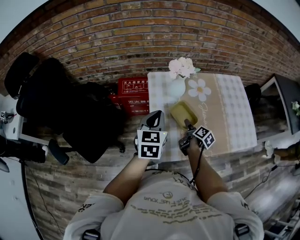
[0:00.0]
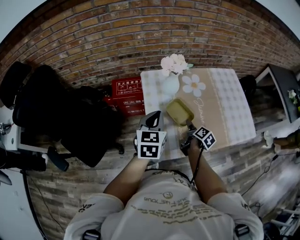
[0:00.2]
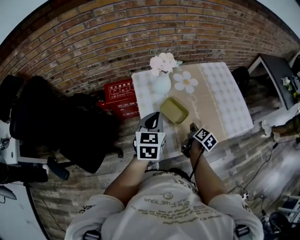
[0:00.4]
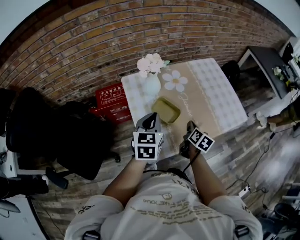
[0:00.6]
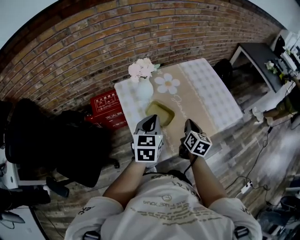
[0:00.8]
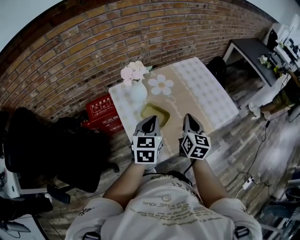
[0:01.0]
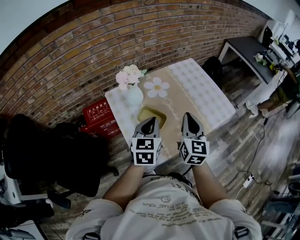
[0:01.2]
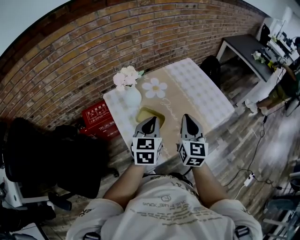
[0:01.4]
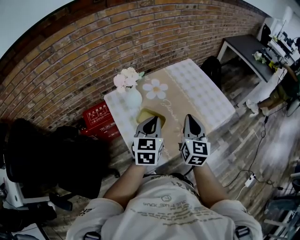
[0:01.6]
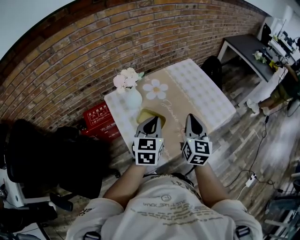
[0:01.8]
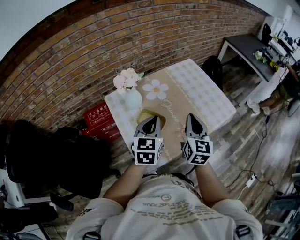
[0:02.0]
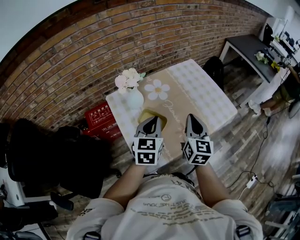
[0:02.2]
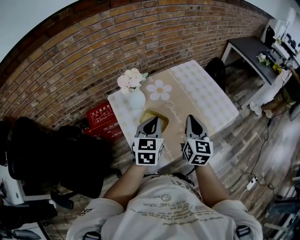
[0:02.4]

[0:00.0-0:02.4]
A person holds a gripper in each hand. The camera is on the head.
0:00.0 to 0:01.2: The left gripper moves some 15 cm, and swivels approximately 20 degrees.

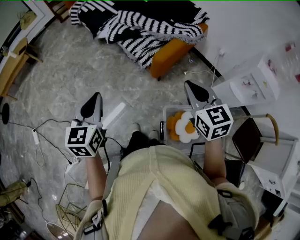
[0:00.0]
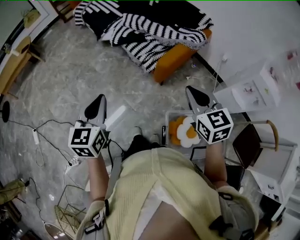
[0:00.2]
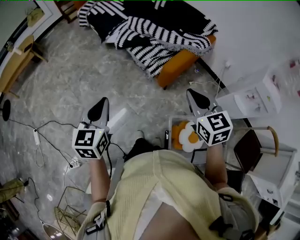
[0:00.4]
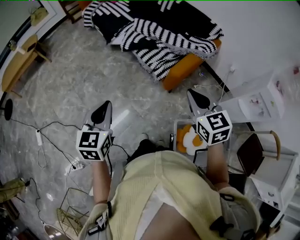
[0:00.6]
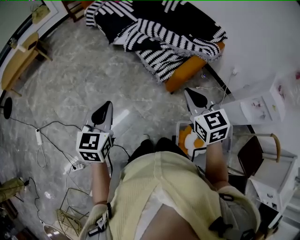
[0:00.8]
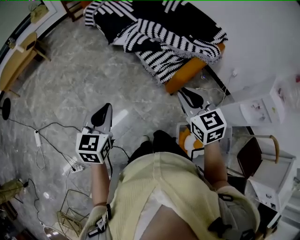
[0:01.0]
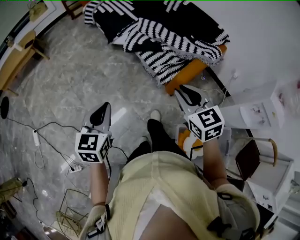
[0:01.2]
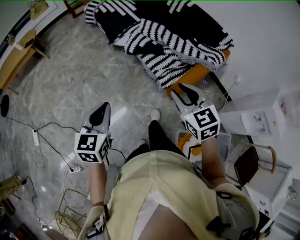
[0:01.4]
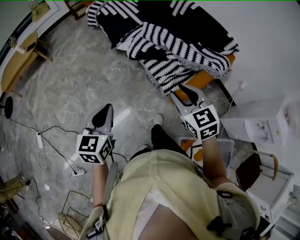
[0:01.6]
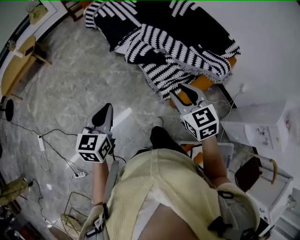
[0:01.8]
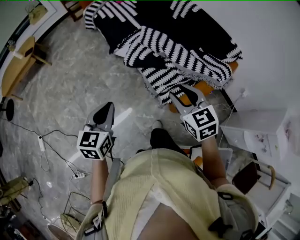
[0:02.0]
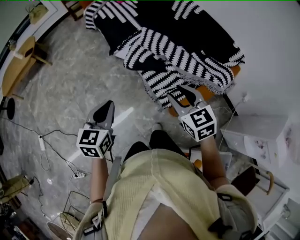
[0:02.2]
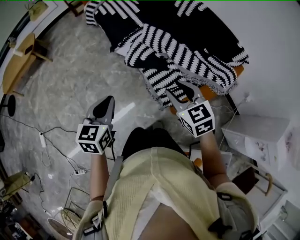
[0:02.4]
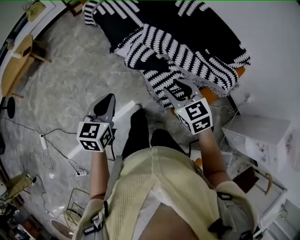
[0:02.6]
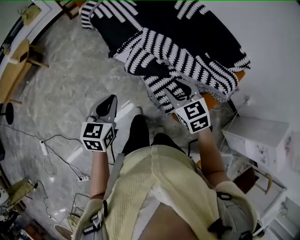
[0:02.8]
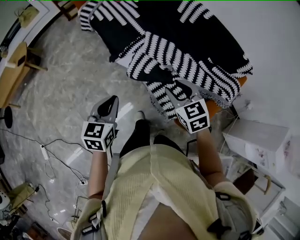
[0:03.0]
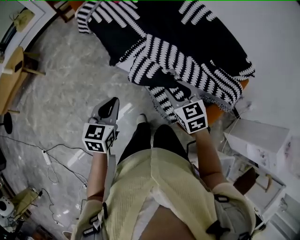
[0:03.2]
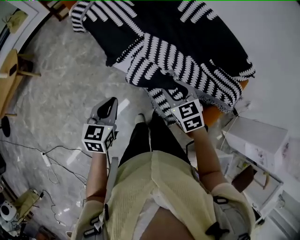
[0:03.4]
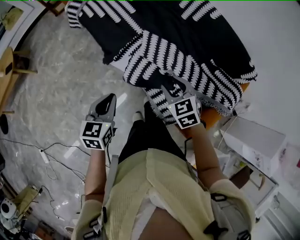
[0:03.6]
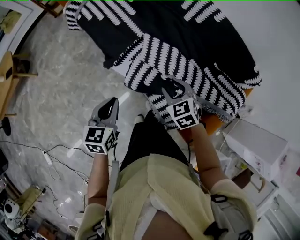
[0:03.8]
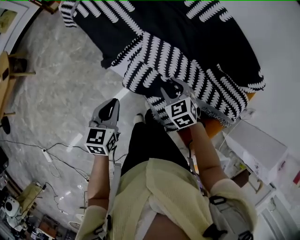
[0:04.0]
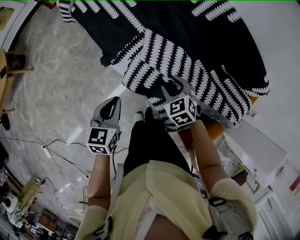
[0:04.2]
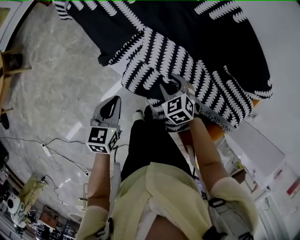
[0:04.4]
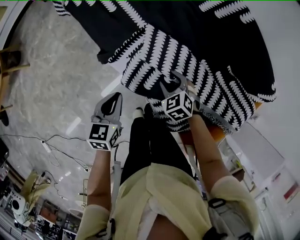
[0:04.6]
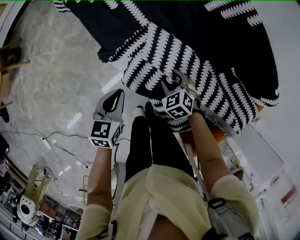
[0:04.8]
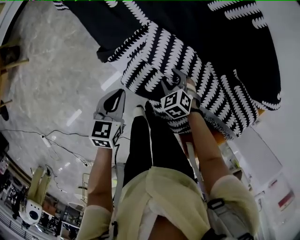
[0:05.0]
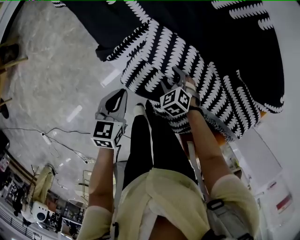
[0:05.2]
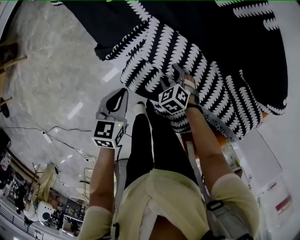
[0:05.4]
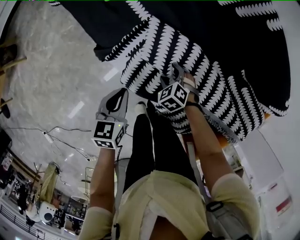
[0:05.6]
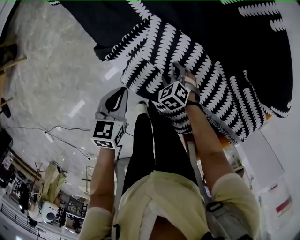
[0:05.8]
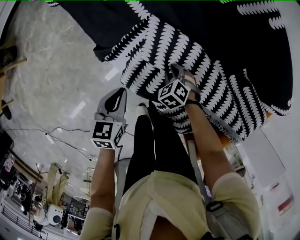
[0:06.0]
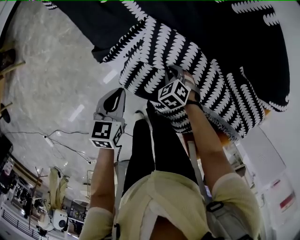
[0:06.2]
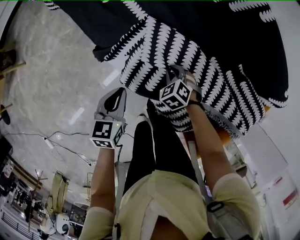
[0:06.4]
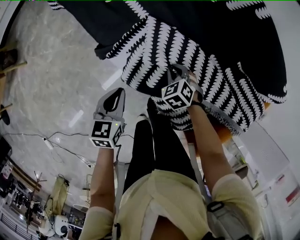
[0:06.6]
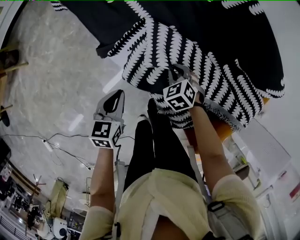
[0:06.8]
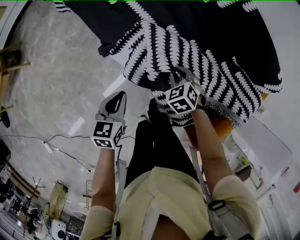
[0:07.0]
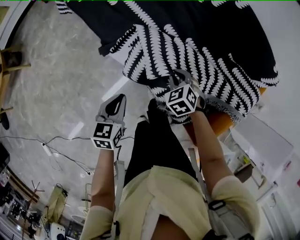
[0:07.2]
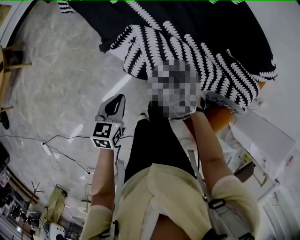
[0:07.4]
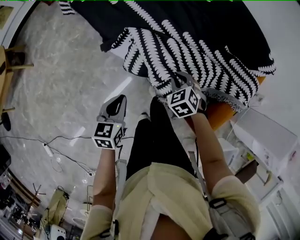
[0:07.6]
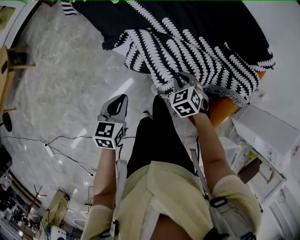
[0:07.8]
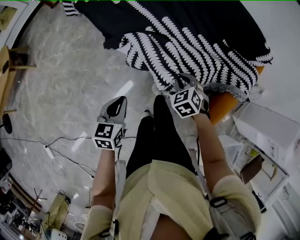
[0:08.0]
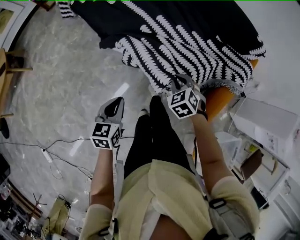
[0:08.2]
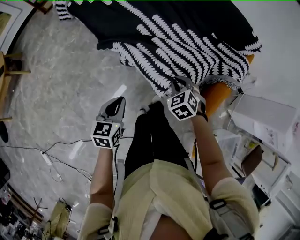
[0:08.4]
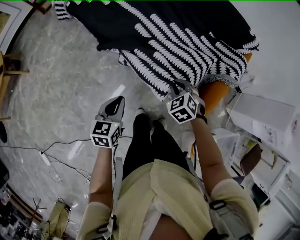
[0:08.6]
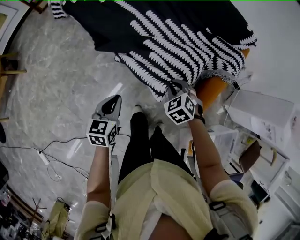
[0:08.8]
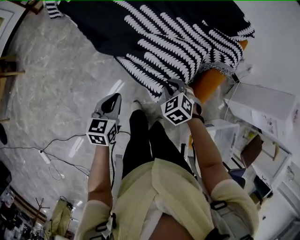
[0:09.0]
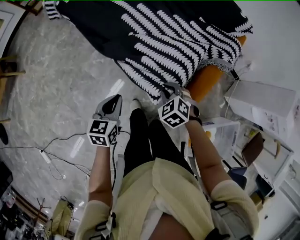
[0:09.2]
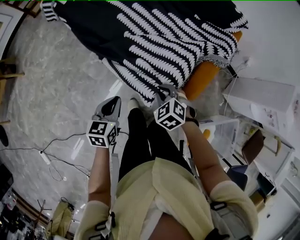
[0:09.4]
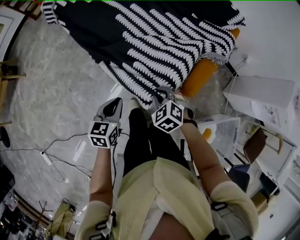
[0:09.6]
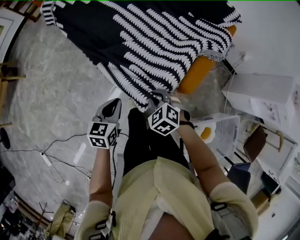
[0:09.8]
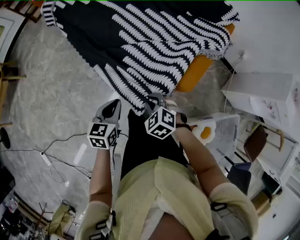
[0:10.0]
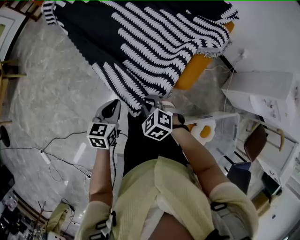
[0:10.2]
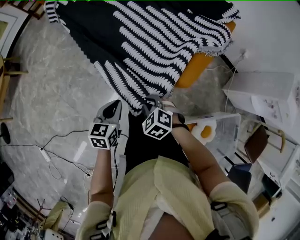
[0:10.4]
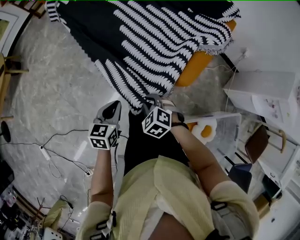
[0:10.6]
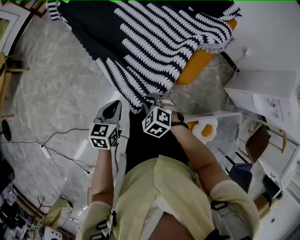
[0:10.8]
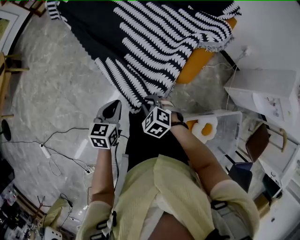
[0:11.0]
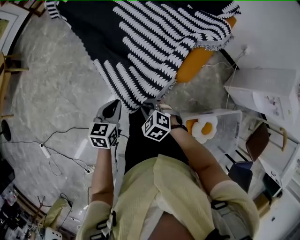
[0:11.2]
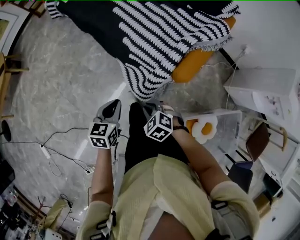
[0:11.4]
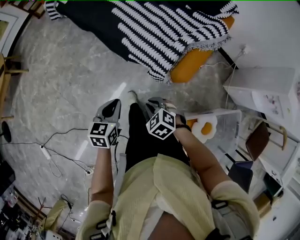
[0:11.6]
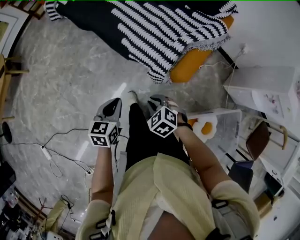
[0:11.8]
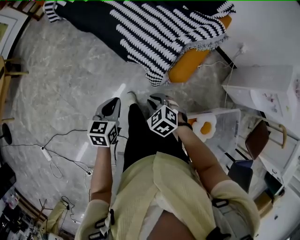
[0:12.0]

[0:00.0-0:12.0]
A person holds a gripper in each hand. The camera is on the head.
0:00.0 to 0:01.6: The grippers both shift forward and to the left by about 25 cm. The right gripper opens.
0:01.6 to 0:03.0: The two grippers go some 30 cm forward.
0:03.0 to 0:04.4: The left gripper travels forward and downward by roughly 25 cm; the right gripper shifts roughly 30 cm downward and forward, and turns by about 20 degrees.
0:04.4 to 0:06.0: The right gripper shifts about 15 cm downward, and opens and closes again, while the left gripper moves downward and forward, roughly 10 cm.
0:06.0 to 0:07.6: The right gripper goes some 20 cm upward and backward, while the left gripper shifts some 15 cm backward.
0:07.6 to 0:09.0: The left gripper shifts approximately 10 cm backward; the right gripper moves backward, some 20 cm.
0:09.0 to 0:10.4: The left gripper travels backward and to the right by some 15 cm. The right gripper is displaced backward by some 15 cm.

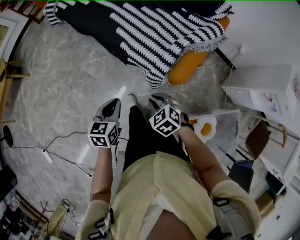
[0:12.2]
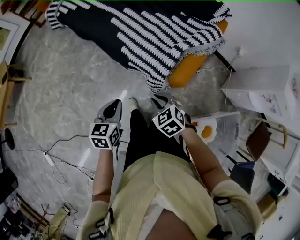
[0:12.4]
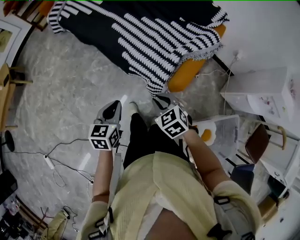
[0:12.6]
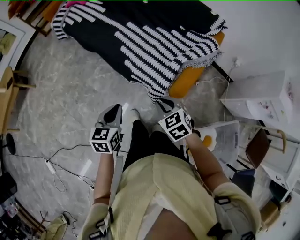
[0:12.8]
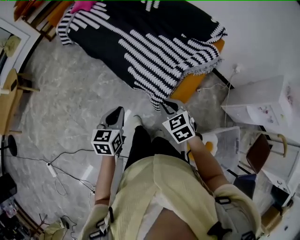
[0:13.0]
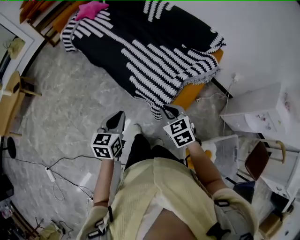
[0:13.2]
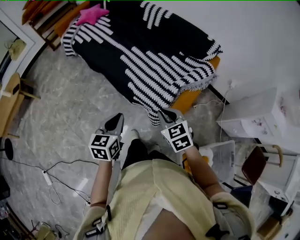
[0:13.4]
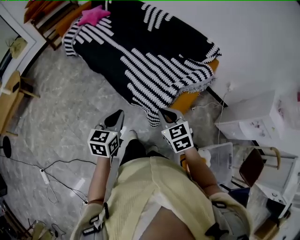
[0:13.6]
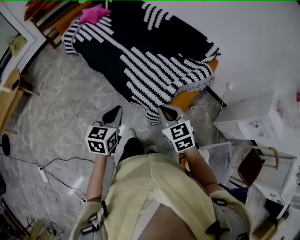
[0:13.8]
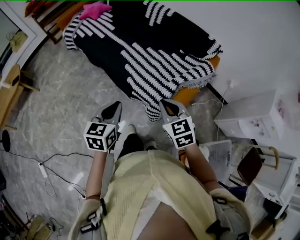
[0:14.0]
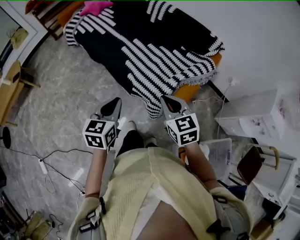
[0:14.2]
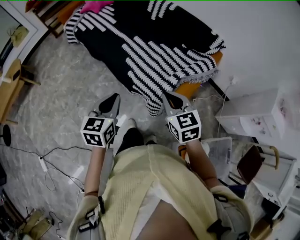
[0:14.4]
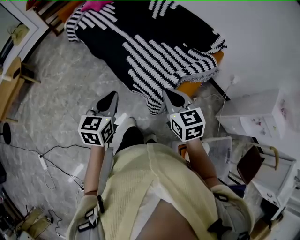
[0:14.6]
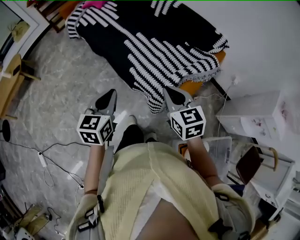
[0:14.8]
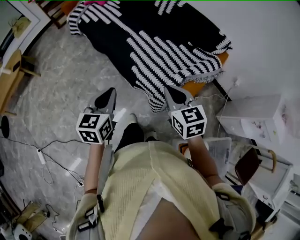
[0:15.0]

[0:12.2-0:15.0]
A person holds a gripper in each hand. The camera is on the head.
0:12.2 to 0:13.6: Both grippers move upward and forward, roughly 15 cm. The right gripper changes its angle by approximately 20 degrees.
0:13.6 to 0:15.0: The right gripper is displaced upward by about 5 cm. The left gripper moves about 5 cm.

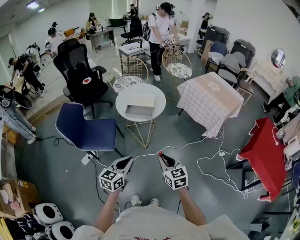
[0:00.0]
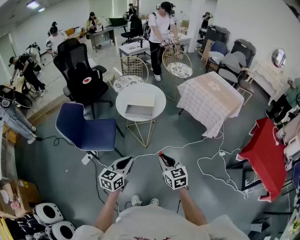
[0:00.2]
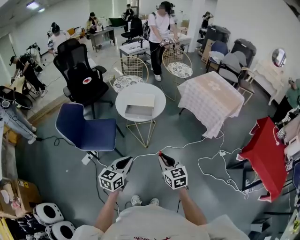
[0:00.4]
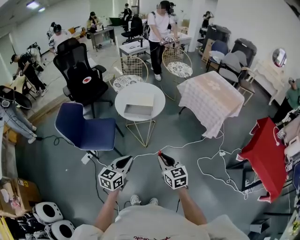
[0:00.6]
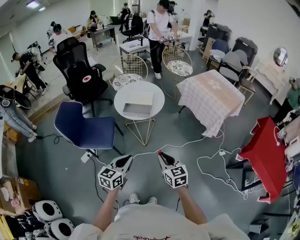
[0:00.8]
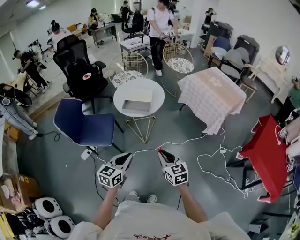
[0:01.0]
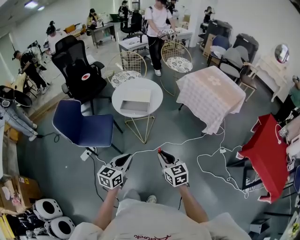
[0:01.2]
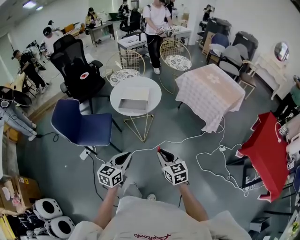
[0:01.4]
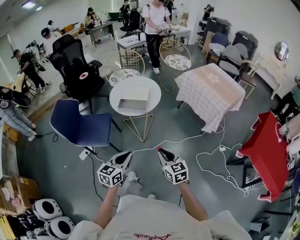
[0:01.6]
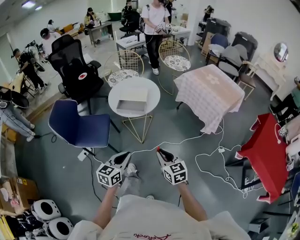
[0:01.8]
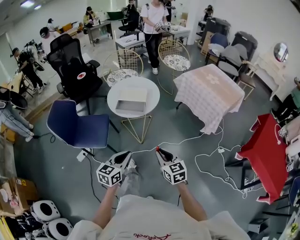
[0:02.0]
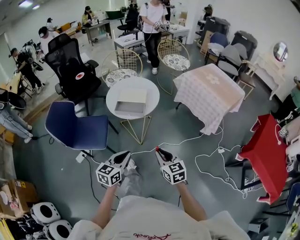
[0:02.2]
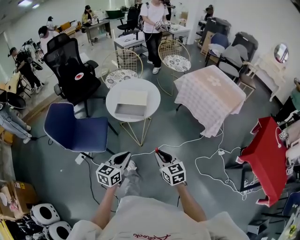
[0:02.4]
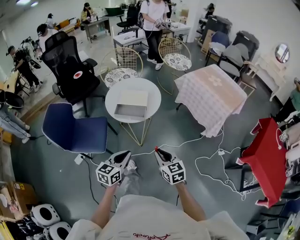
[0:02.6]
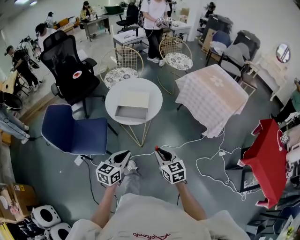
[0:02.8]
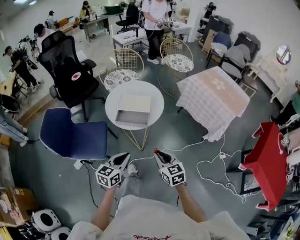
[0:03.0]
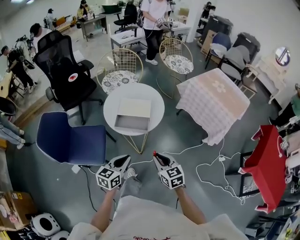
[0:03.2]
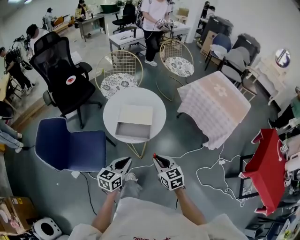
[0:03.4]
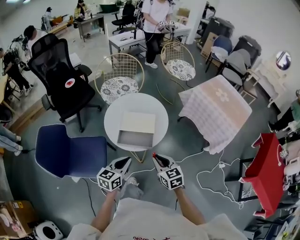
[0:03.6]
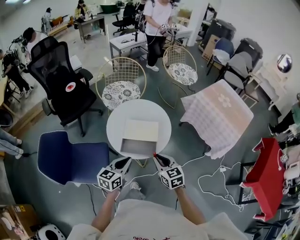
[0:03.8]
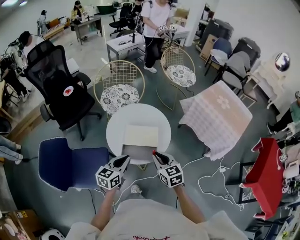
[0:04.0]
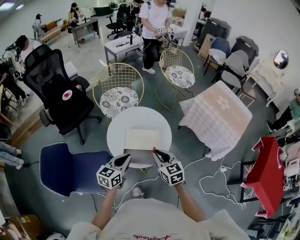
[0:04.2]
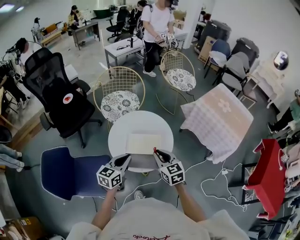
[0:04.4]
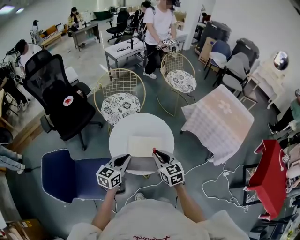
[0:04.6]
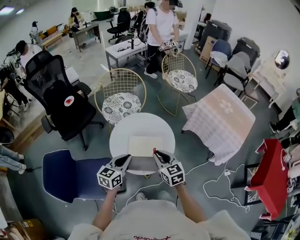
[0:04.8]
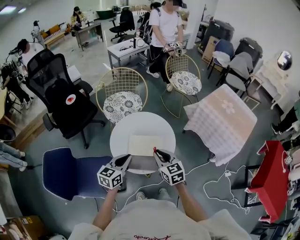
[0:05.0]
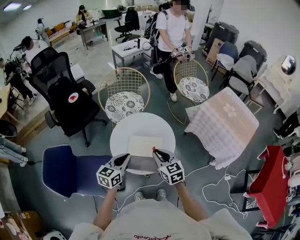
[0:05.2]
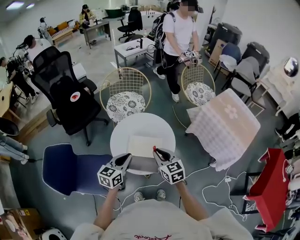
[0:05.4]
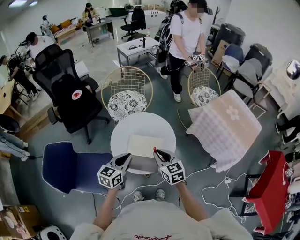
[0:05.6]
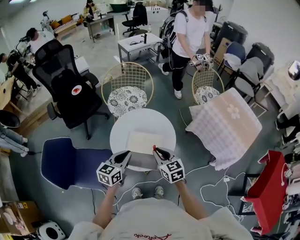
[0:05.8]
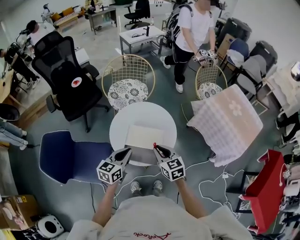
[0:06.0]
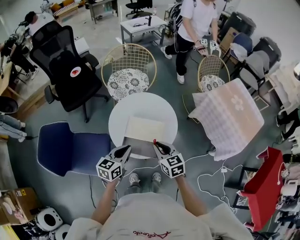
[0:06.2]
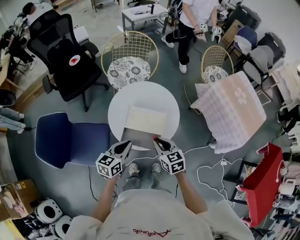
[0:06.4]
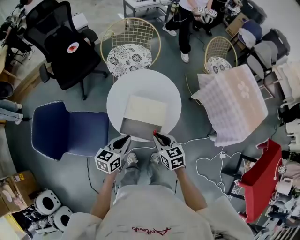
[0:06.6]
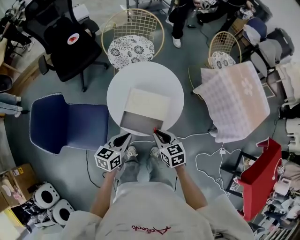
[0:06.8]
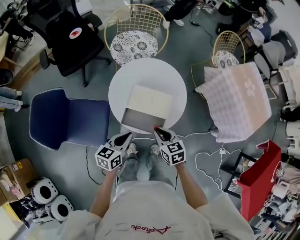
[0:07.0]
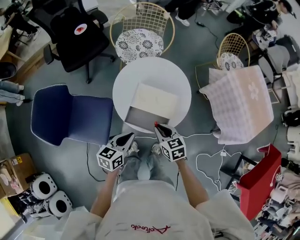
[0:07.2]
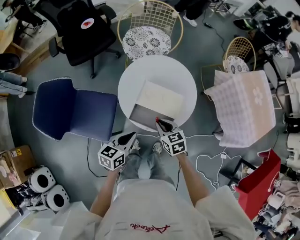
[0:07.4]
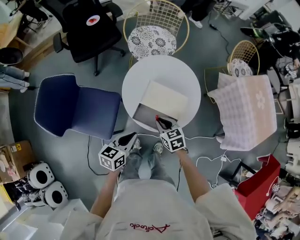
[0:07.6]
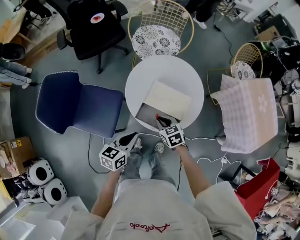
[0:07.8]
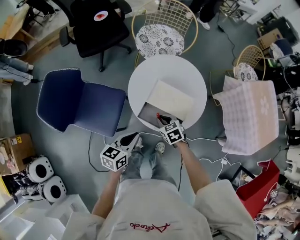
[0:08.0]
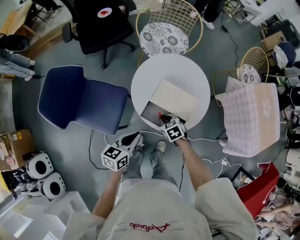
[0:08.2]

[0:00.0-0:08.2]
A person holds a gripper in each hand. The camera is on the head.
0:00.0 to 0:01.6: Both grippers travel together to the right, about 5 cm.
0:01.6 to 0:03.2: Both grippers travel together forward, about 20 cm.
0:03.2 to 0:05.0: Both grippers travel together forward, approximately 25 cm.
0:05.0 to 0:06.6: The right gripper heads downward, covering roughly 10 cm; the left gripper heads downward and backward, covering roughly 10 cm.
0:06.6 to 0:08.2: The left gripper is displaced to the left by approximately 5 cm, while the right gripper goes roughly 15 cm downward and to the left, and changes its angle by some 30 degrees.
